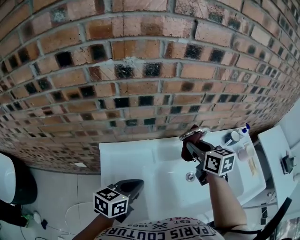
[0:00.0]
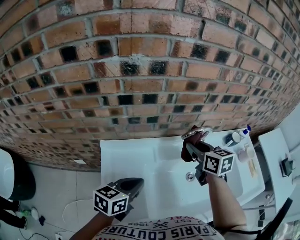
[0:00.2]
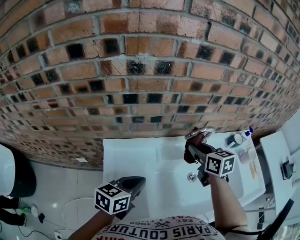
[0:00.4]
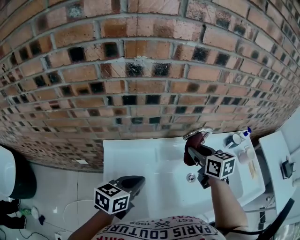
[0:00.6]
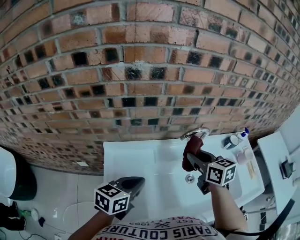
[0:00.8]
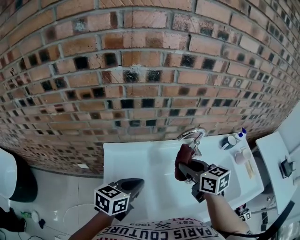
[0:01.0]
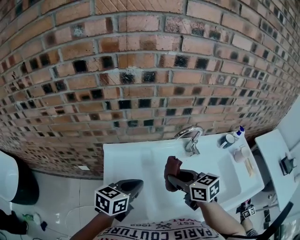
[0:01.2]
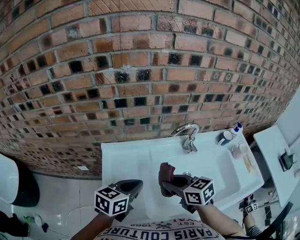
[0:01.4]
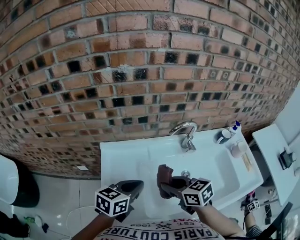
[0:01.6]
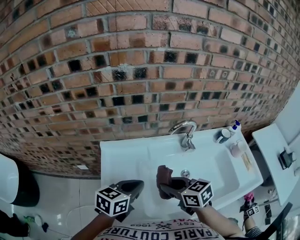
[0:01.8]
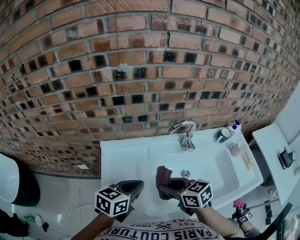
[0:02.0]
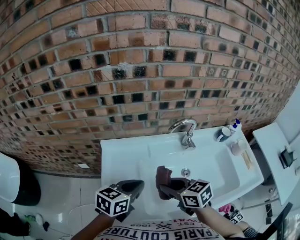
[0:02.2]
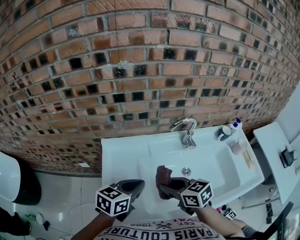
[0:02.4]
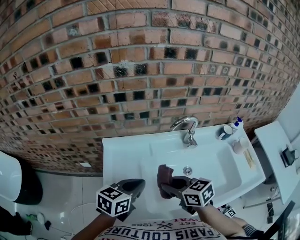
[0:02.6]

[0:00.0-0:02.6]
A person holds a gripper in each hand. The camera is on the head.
0:00.0 to 0:01.2: The right gripper moves backward, about 15 cm.
0:01.2 to 0:02.6: The right gripper goes some 5 cm backward.

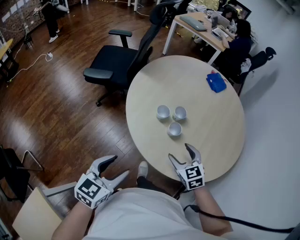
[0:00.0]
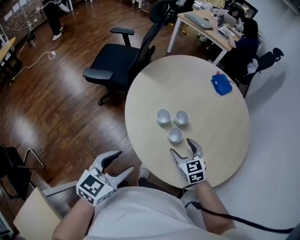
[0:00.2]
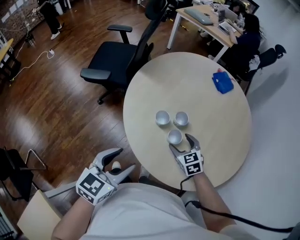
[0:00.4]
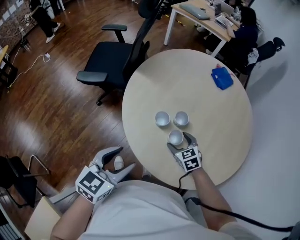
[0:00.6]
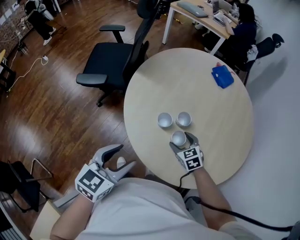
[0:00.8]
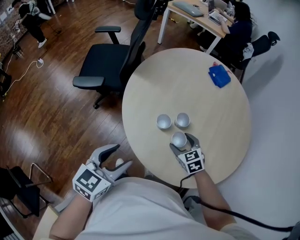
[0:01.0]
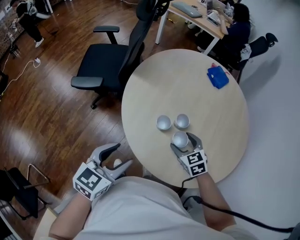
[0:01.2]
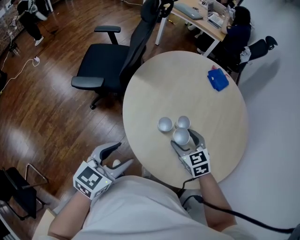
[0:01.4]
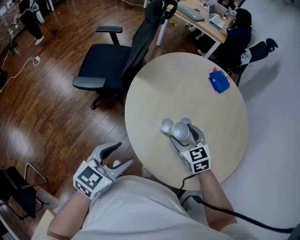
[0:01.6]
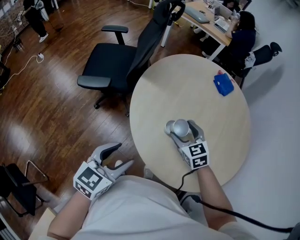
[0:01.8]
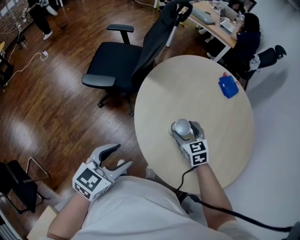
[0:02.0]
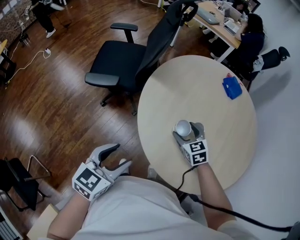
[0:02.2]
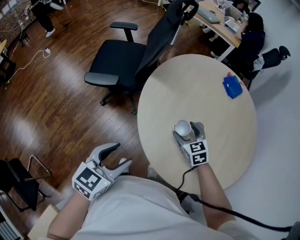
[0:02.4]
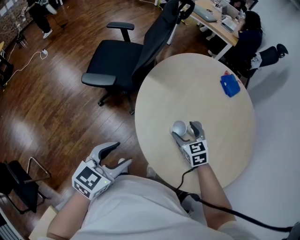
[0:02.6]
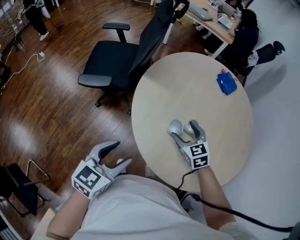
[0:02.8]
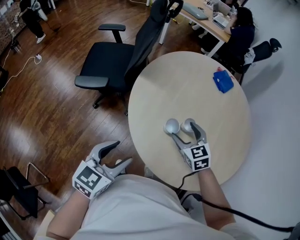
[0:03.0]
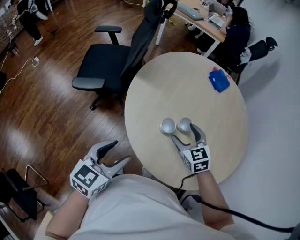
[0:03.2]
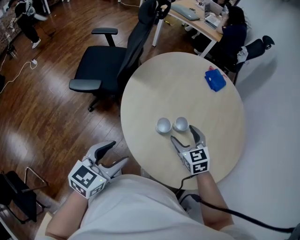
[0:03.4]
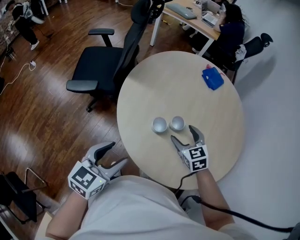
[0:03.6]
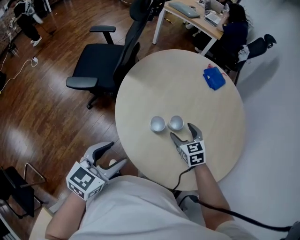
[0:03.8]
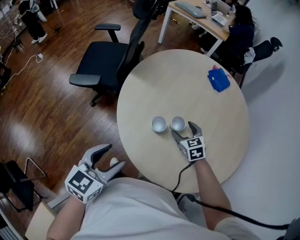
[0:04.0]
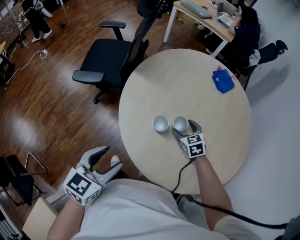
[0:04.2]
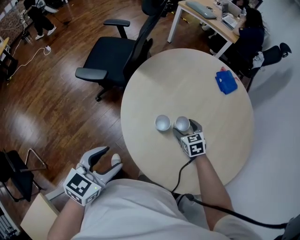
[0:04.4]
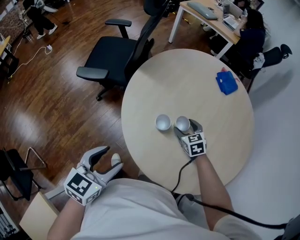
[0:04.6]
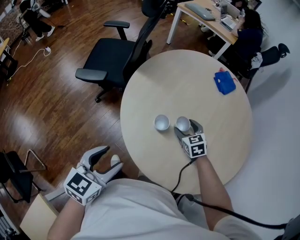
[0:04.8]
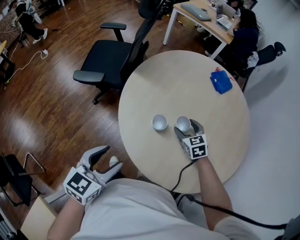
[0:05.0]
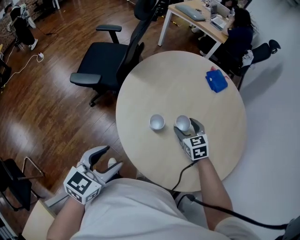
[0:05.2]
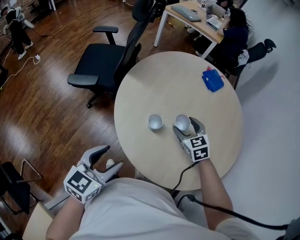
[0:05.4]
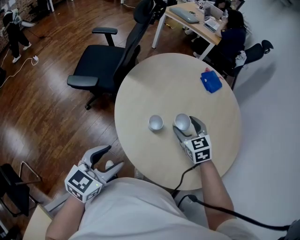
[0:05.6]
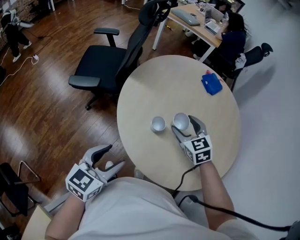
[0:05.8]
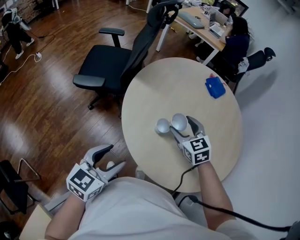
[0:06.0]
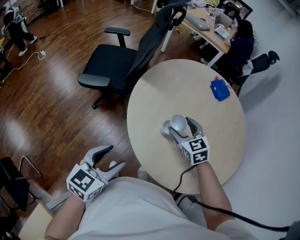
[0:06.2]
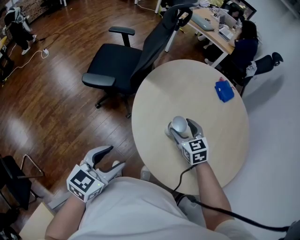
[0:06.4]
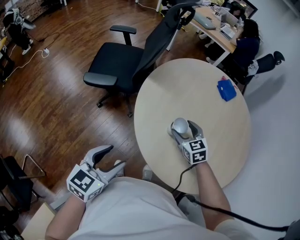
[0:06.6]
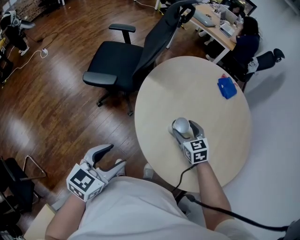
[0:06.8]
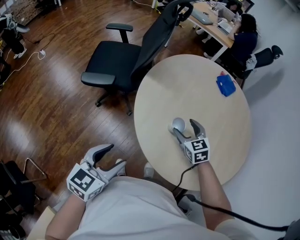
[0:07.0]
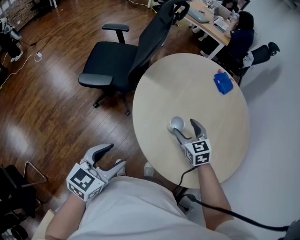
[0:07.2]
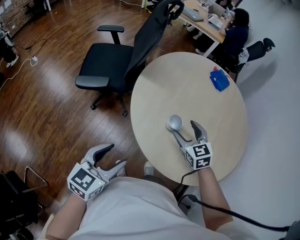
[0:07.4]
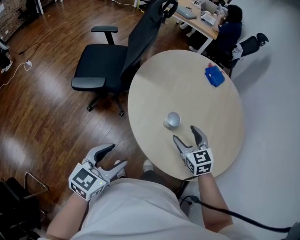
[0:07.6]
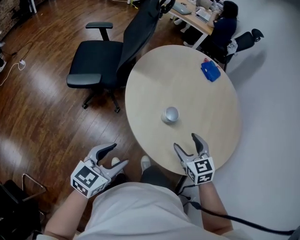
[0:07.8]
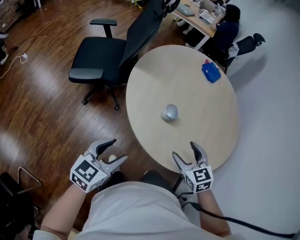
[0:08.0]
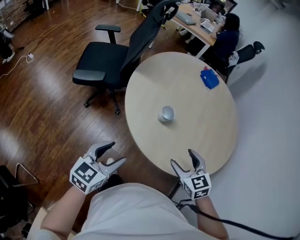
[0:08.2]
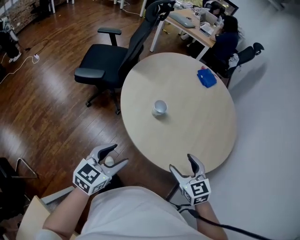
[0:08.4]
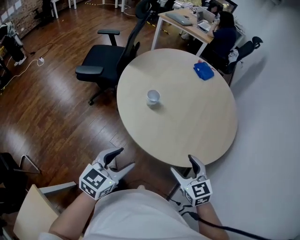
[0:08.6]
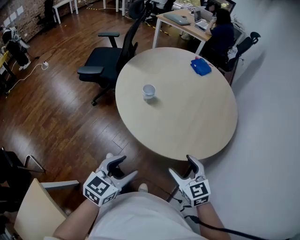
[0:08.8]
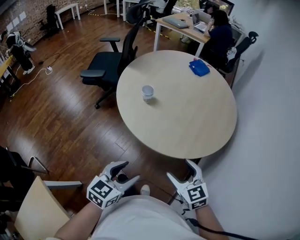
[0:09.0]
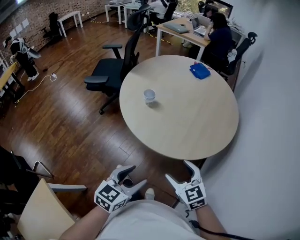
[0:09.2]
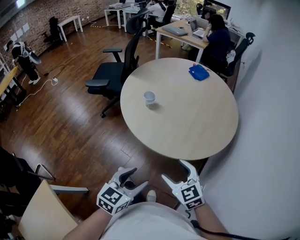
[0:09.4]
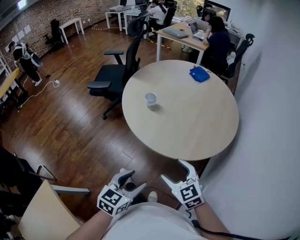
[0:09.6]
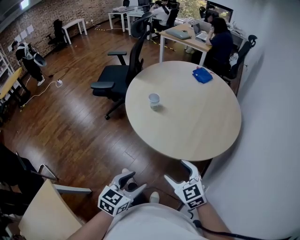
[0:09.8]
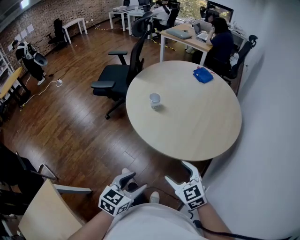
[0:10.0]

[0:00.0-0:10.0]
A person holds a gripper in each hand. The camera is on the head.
0:00.0 to 0:01.4: The grippers both shift forward by some 15 cm.
0:01.4 to 0:02.8: The right gripper ends up approximately 5 cm from where it was.
0:02.8 to 0:04.2: The right gripper goes some 10 cm to the right and downward. The left gripper is displaced to the right by approximately 5 cm.
0:04.2 to 0:05.8: The right gripper is displaced upward by about 15 cm.
0:05.8 to 0:07.2: Both grippers travel together to the left, about 5 cm.
0:07.2 to 0:08.6: The left gripper shifts roughly 25 cm to the right and backward. The right gripper is displaced backward and to the right by approximately 35 cm.
0:08.6 to 0:10.0: The right gripper heads backward, covering roughly 10 cm; the left gripper heads backward and to the right, covering approximately 20 cm.

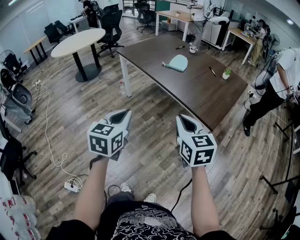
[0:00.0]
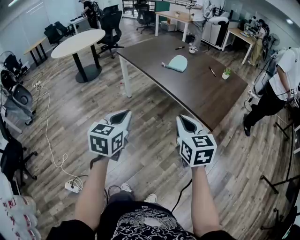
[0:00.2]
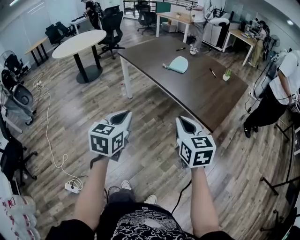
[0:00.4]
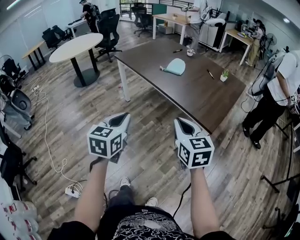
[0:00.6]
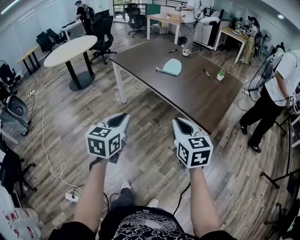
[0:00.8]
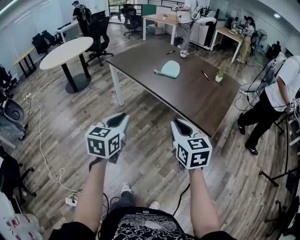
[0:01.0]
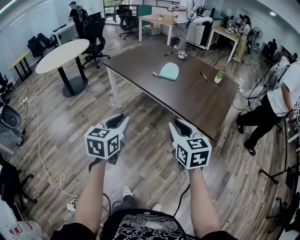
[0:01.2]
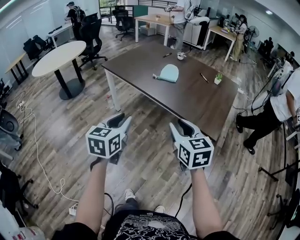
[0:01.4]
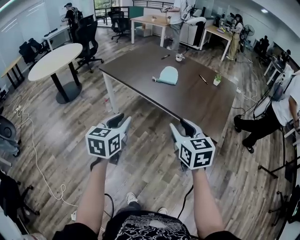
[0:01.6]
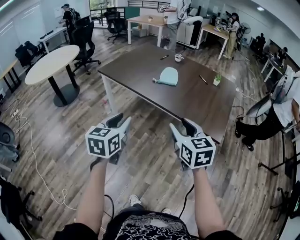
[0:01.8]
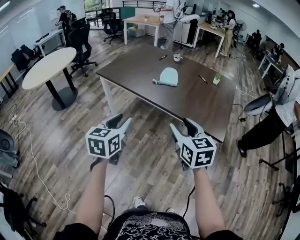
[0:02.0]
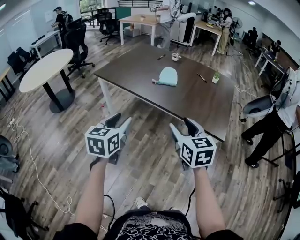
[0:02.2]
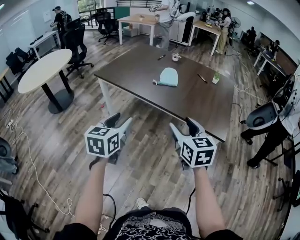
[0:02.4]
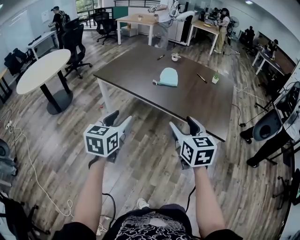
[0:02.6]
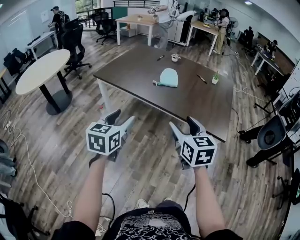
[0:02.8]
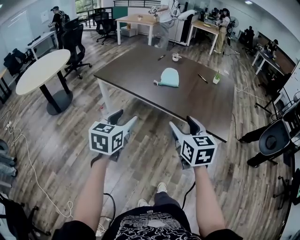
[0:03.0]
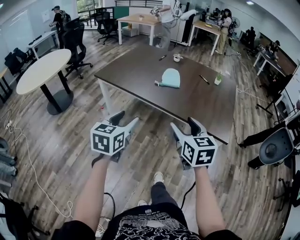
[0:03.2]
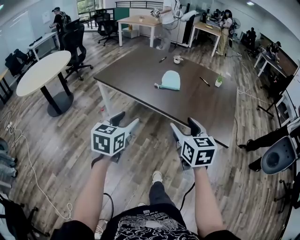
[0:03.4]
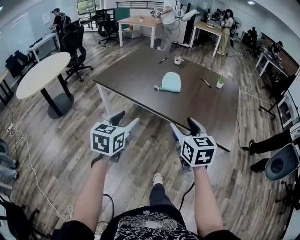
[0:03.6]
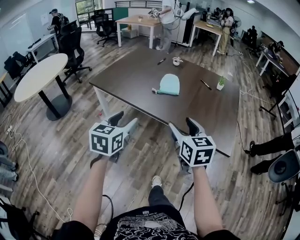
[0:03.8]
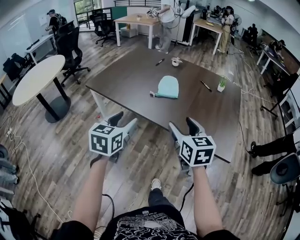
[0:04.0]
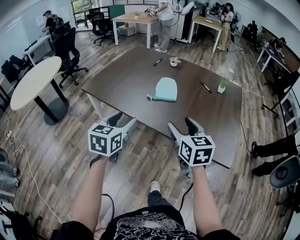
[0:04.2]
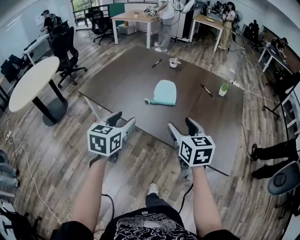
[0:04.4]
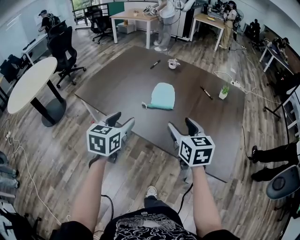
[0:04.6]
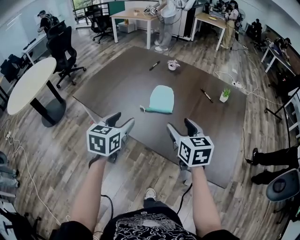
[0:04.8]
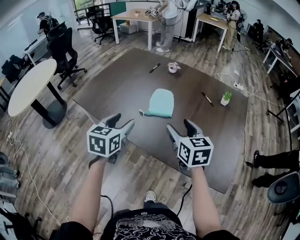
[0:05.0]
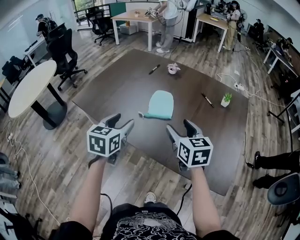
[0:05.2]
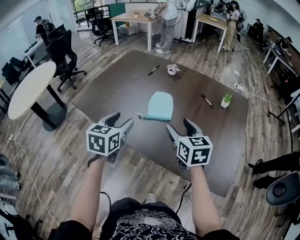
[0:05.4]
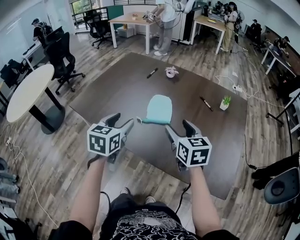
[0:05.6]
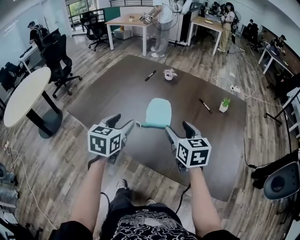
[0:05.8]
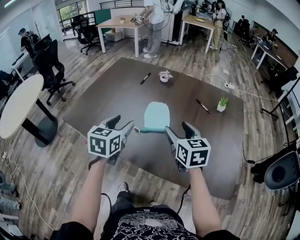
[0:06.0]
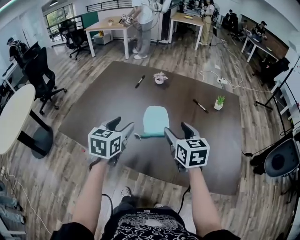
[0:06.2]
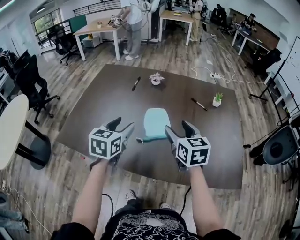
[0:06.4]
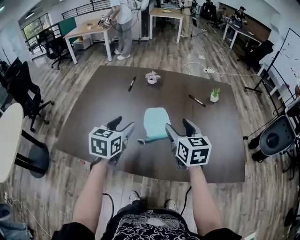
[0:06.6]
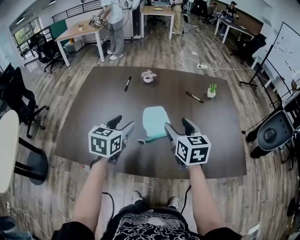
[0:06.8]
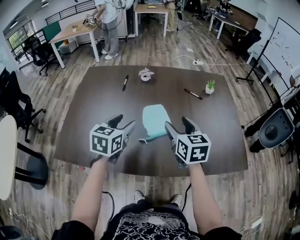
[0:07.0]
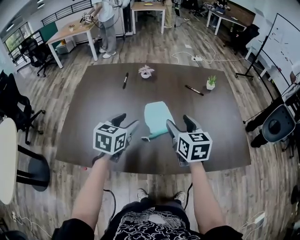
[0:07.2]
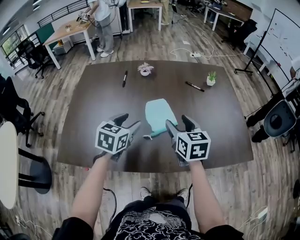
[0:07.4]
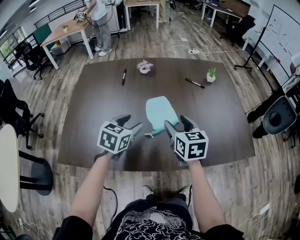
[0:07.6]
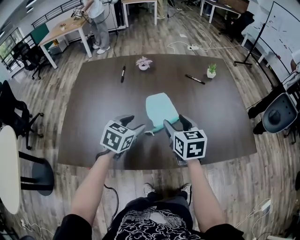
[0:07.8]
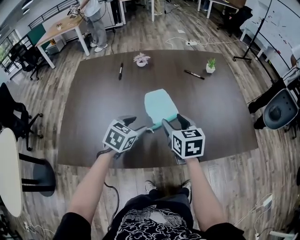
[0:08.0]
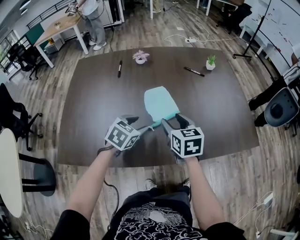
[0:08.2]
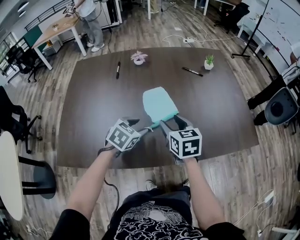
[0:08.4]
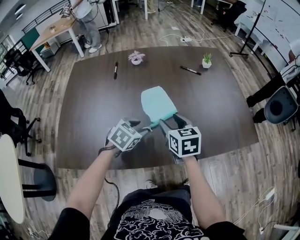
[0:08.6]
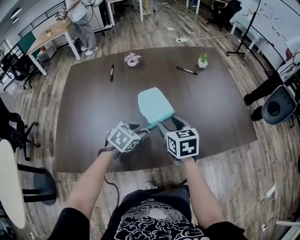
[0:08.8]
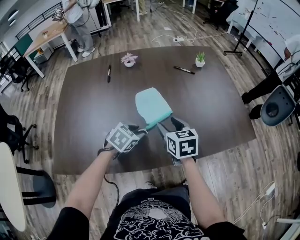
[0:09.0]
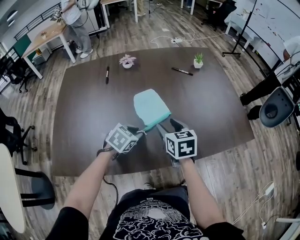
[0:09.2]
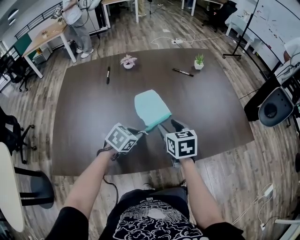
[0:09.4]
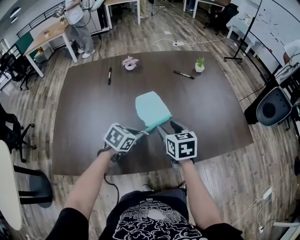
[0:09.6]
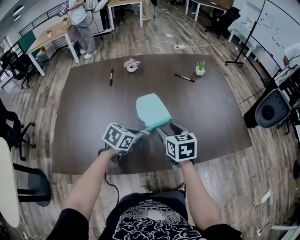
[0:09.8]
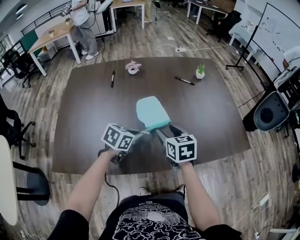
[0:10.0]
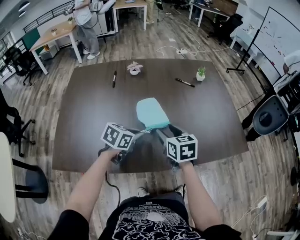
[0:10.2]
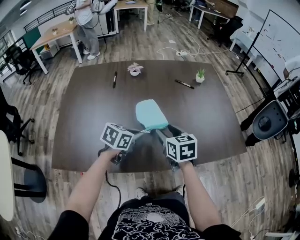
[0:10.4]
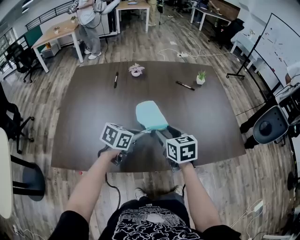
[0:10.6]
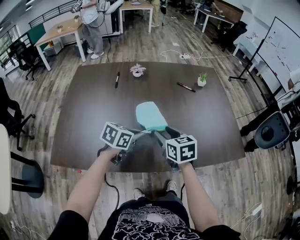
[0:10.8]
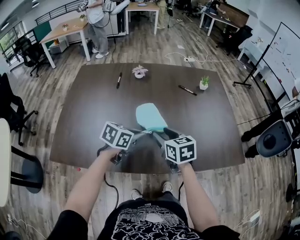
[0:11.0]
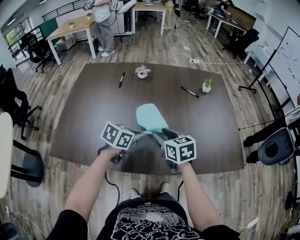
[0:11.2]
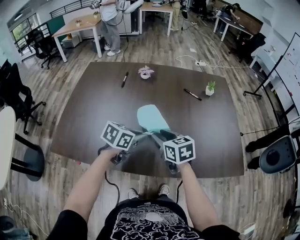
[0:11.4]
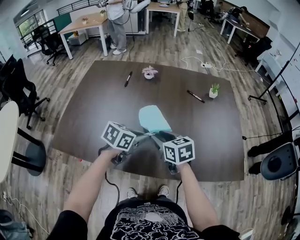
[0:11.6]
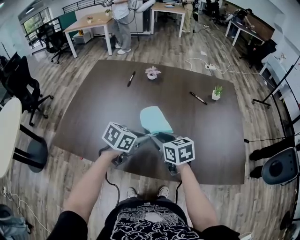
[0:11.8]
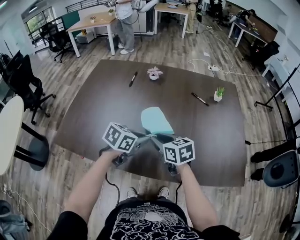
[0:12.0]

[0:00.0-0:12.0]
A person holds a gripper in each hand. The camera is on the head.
0:00.0 to 0:01.6: Both grippers travel together forward and to the left, roughly 15 cm. The right gripper opens. The left gripper opens its fingers.
0:01.6 to 0:03.0: The right gripper shifts approximately 10 cm to the left, and opens up. Meanwhile the left gripper shifts roughly 10 cm to the left and forward, and opens.
0:03.0 to 0:04.4: The two grippers go approximately 25 cm forward.
0:04.4 to 0:06.0: Both grippers move forward, some 20 cm.
0:06.0 to 0:07.6: The left gripper shifts by approximately 10 cm, and rotates roughly 40 degrees; the right gripper changes place by approximately 10 cm, and changes its angle by roughly 30 degrees.
0:07.6 to 0:09.0: The right gripper goes about 5 cm downward, while the left gripper moves downward and to the right, about 15 cm, changes its angle by roughly 30 degrees, and closes.
0:09.0 to 0:10.4: The left gripper moves upward, some 5 cm, rotates approximately 30 degrees, and closes up.
0:10.4 to 0:12.0: The right gripper turns by about 30 degrees, and closes its fingers. Meanwhile the left gripper ends up about 5 cm from where it was.
